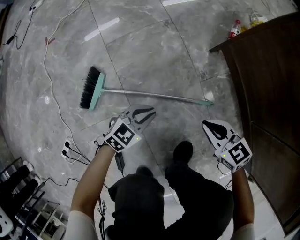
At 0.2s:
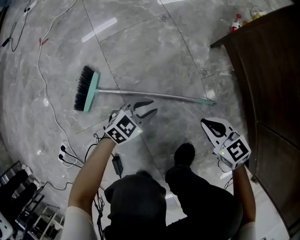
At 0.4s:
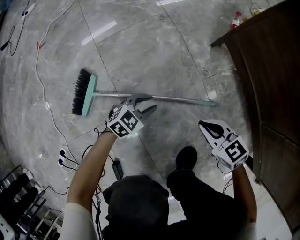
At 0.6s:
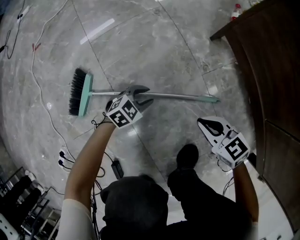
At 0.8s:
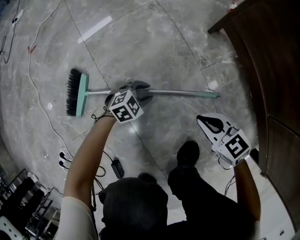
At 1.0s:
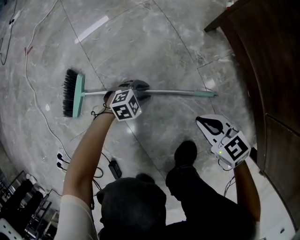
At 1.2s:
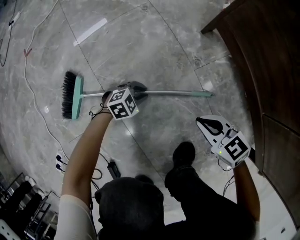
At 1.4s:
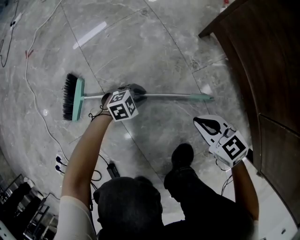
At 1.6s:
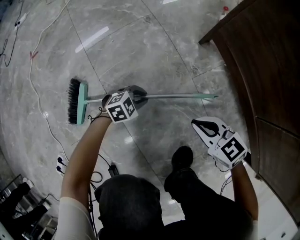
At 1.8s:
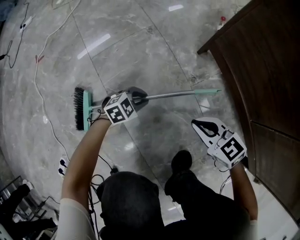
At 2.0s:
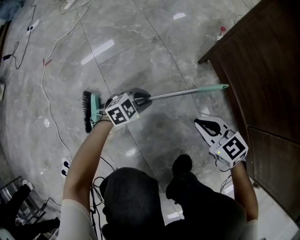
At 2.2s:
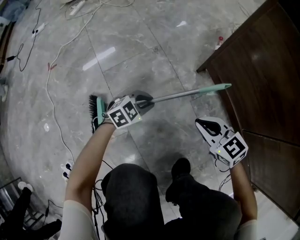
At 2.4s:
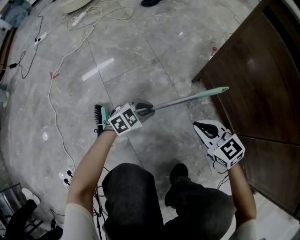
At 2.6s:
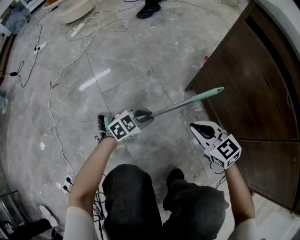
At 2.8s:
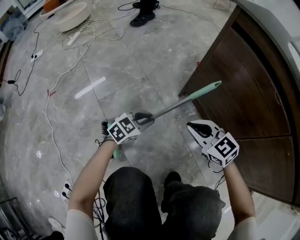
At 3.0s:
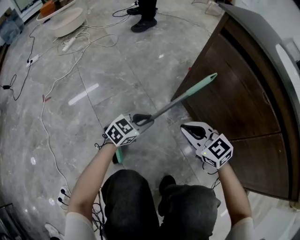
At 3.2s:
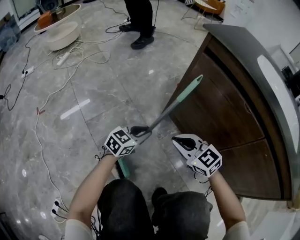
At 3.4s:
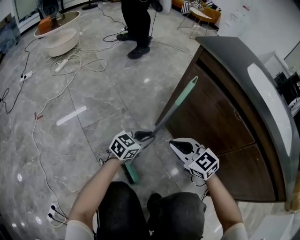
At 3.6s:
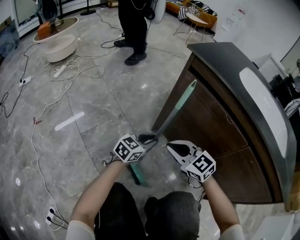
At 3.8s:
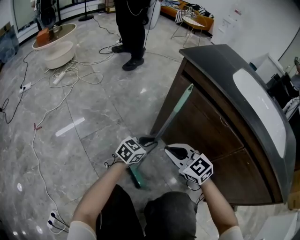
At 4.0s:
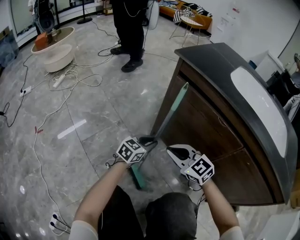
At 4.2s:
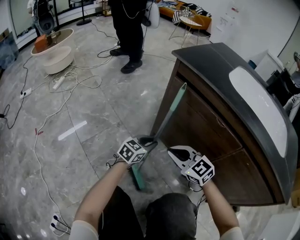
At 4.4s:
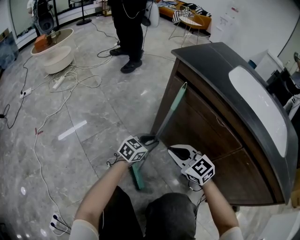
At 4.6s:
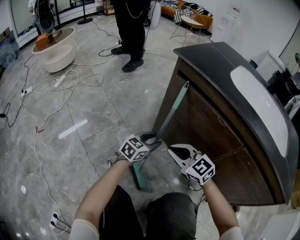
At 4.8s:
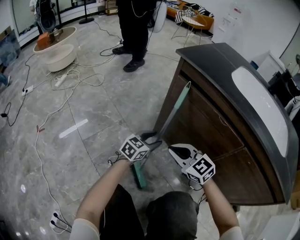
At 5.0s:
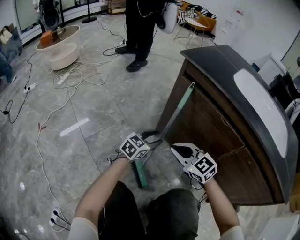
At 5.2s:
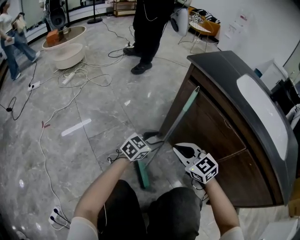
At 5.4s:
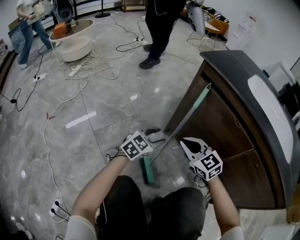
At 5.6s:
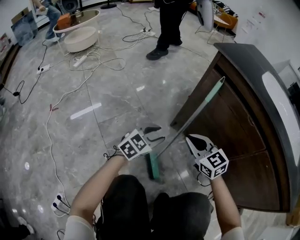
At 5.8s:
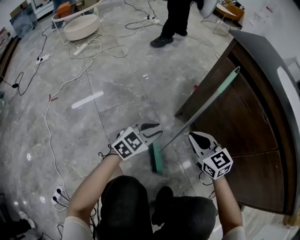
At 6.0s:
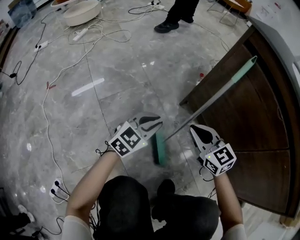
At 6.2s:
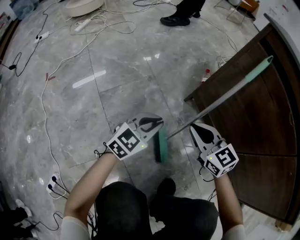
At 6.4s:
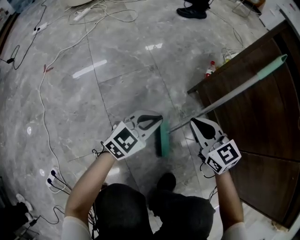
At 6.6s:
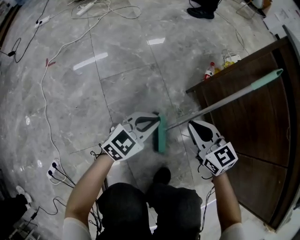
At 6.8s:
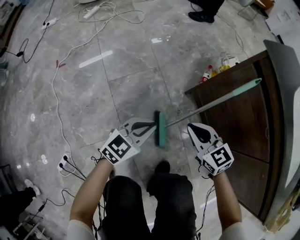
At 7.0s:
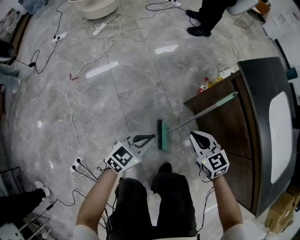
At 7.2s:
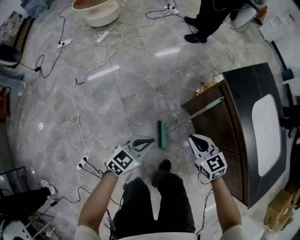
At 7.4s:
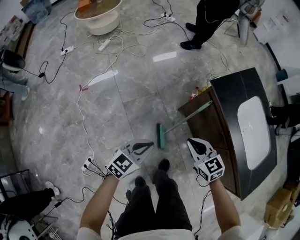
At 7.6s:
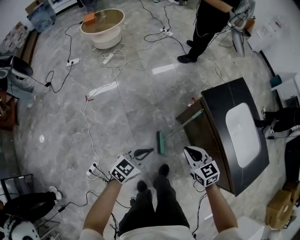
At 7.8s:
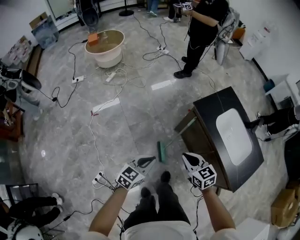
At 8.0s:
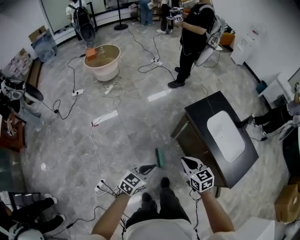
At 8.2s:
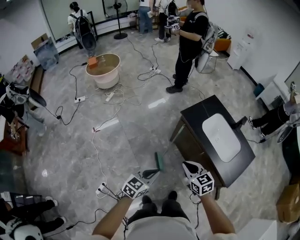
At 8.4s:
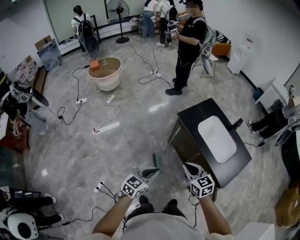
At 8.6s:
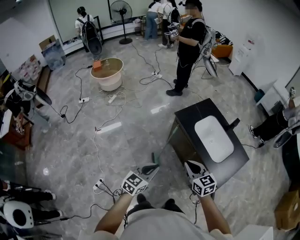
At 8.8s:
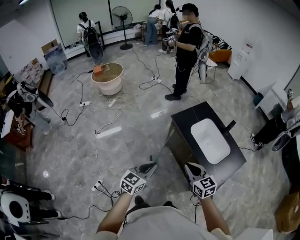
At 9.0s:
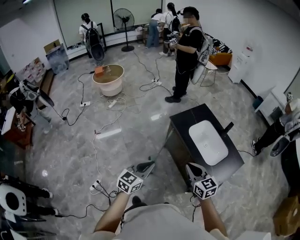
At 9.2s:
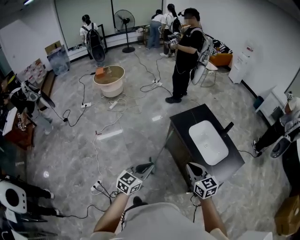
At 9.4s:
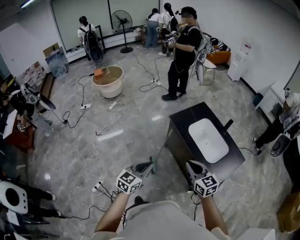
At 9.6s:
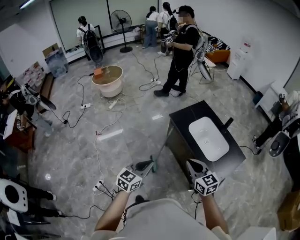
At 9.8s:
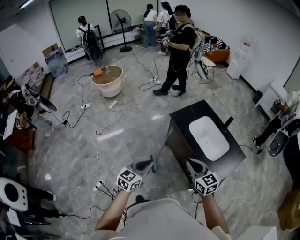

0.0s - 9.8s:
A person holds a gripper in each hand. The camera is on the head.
0.0s - 1.4s: The right gripper goes approximately 10 cm downward. The left gripper goes about 20 cm downward, and turns by roughly 40 degrees.
1.4s - 2.8s: The grippers both shift upward by about 25 cm. The left gripper swivels about 30 degrees. Meanwhile the right gripper turns by about 20 degrees.
2.8s - 4.2s: The left gripper travels to the right, upward and forward by approximately 20 cm. The right gripper is displaced upward and to the right by some 10 cm.
4.2s - 5.6s: The left gripper goes roughly 10 cm to the left, and opens up.
5.6s - 7.0s: The left gripper travels upward, to the left and backward by about 20 cm, rotates approximately 20 degrees, and closes, while the right gripper travels upward and to the left by approximately 10 cm.
7.0s - 8.4s: Both grippers move upward, some 60 cm.
8.4s - 9.8s: The left gripper travels upward and to the right by roughly 10 cm; the right gripper moves to the right and upward, some 15 cm.

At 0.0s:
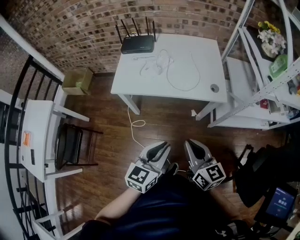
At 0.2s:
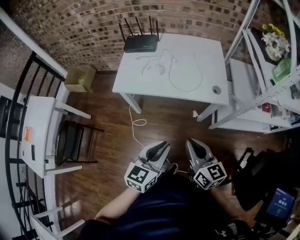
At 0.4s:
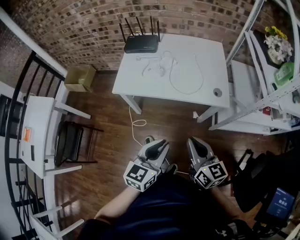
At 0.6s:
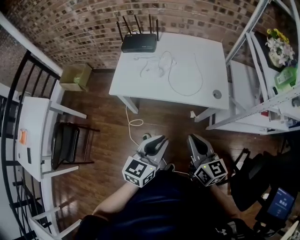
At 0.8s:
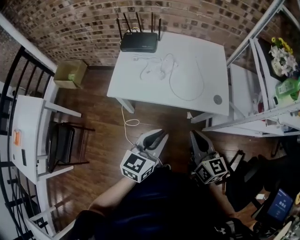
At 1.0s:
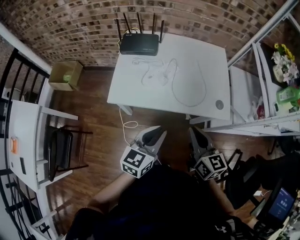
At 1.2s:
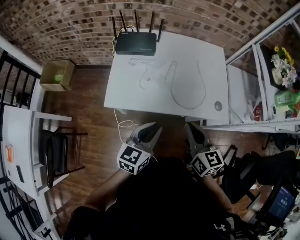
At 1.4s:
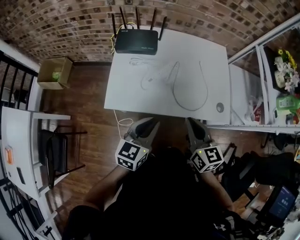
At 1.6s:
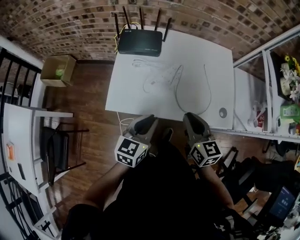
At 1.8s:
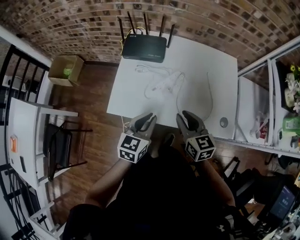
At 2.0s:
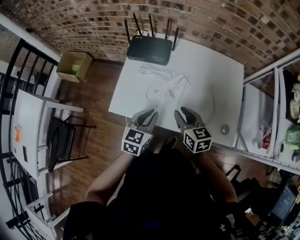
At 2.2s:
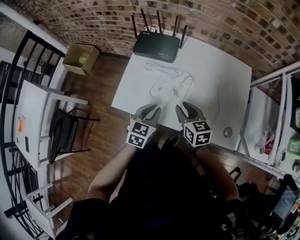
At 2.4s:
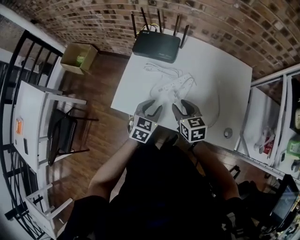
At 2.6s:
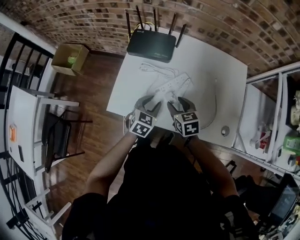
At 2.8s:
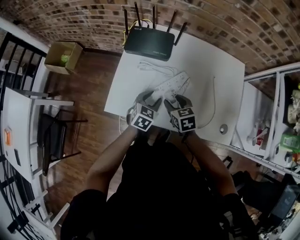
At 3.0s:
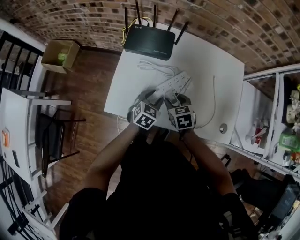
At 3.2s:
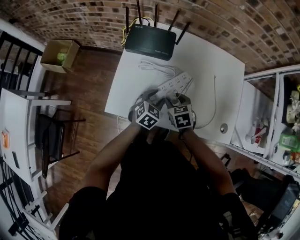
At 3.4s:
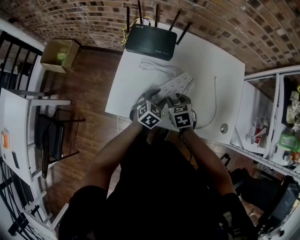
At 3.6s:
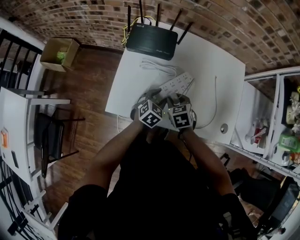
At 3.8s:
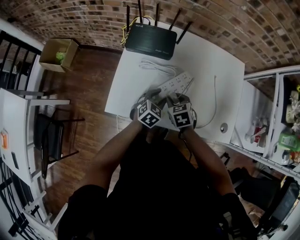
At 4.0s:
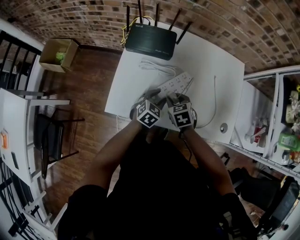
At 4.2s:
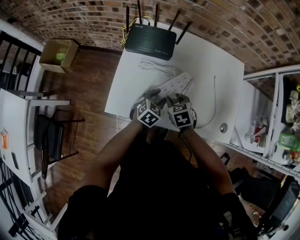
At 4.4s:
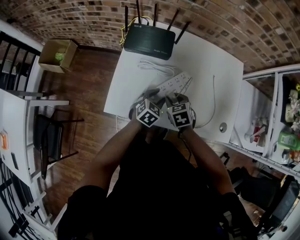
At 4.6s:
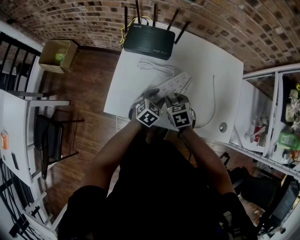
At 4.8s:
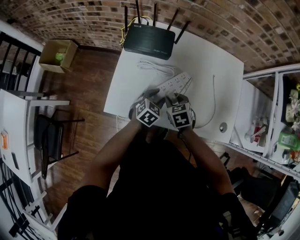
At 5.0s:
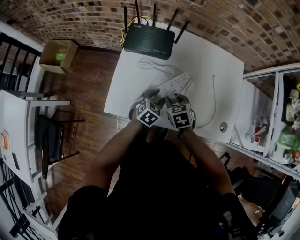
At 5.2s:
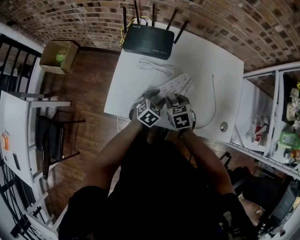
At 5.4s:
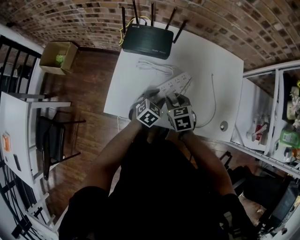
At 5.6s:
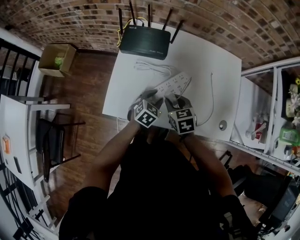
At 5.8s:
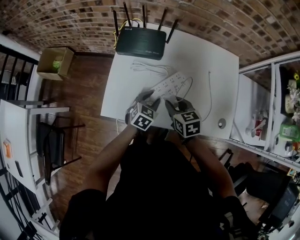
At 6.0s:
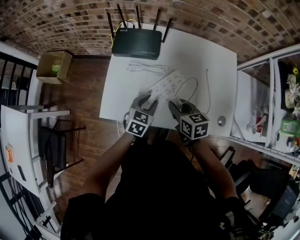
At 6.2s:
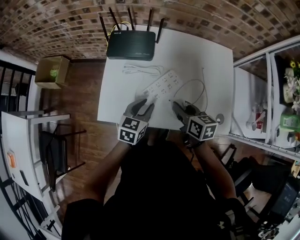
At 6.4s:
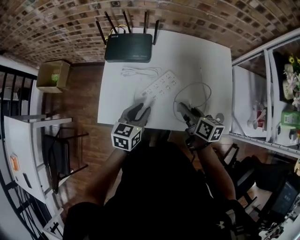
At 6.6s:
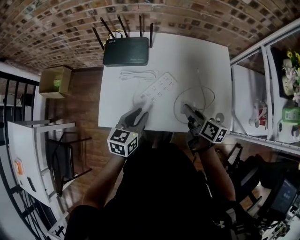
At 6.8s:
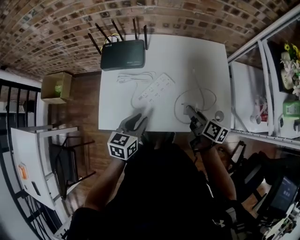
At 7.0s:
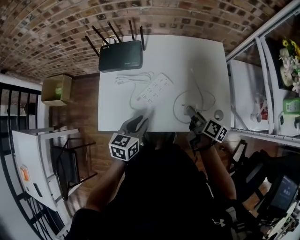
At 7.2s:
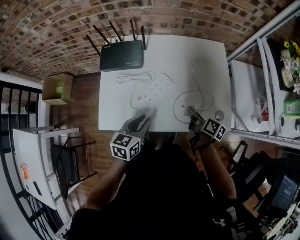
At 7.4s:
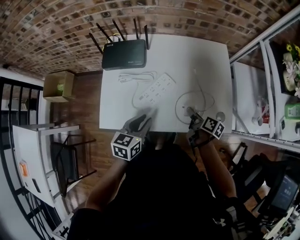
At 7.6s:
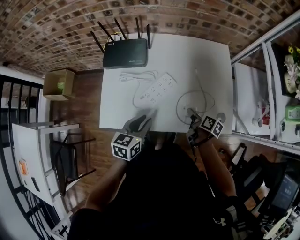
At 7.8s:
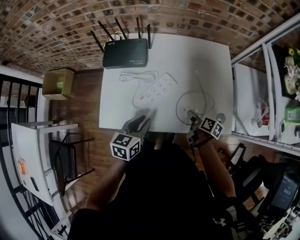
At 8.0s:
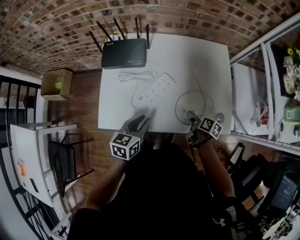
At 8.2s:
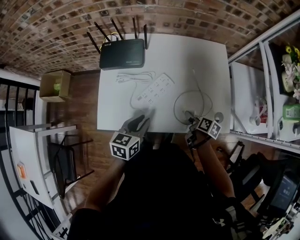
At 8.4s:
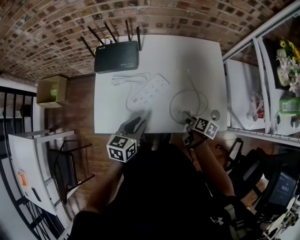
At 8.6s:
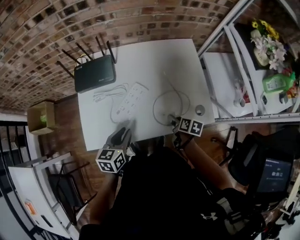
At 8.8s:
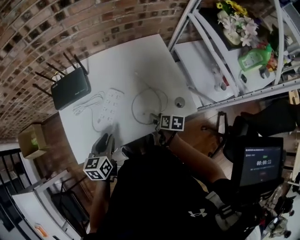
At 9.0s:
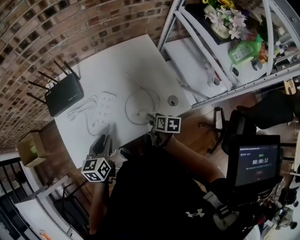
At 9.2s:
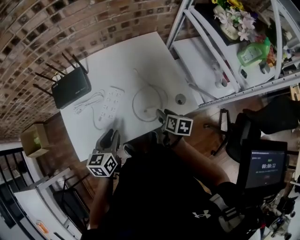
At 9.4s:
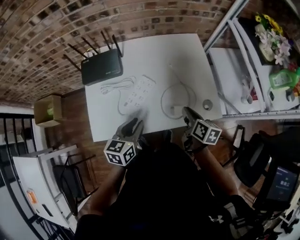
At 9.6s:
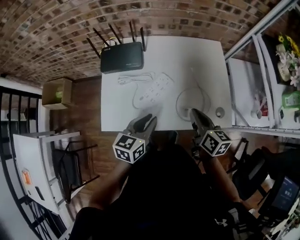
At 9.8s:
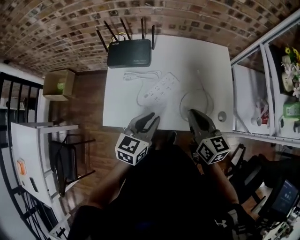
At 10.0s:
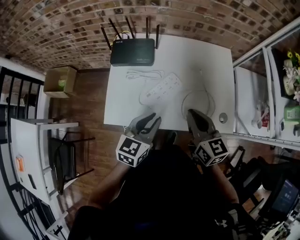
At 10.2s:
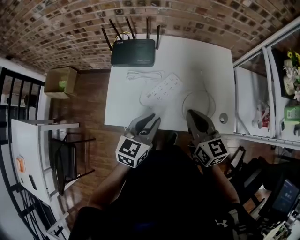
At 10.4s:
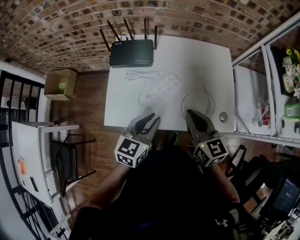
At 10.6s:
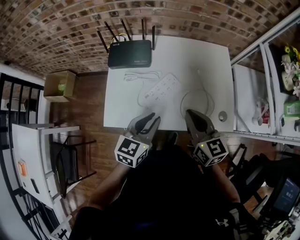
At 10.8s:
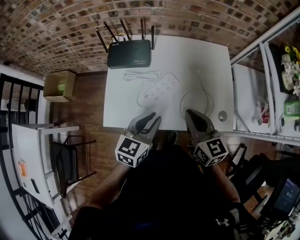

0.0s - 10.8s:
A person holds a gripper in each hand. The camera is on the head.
0.0s - 1.6s: The right gripper heads forward, covering about 30 cm; the left gripper goes approximately 30 cm forward and to the left.
1.6s - 3.0s: Both grippers move downward and forward, some 25 cm. The left gripper turns by some 30 degrees, and opens its fingers. Meanwhile the right gripper tilts its fingers roughly 30 degrees downward, and opens up.
3.0s - 4.6s: The grippers stay close to where they were, moving slightly.
4.6s - 6.2s: The right gripper goes about 10 cm upward and to the right, and changes its angle by roughly 40 degrees. The left gripper moves upward, about 10 cm, and rotates some 20 degrees.
6.2s - 7.8s: The right gripper heads to the right and downward, covering about 20 cm, and turns by some 40 degrees. The left gripper changes place by approximately 5 cm.
7.8s - 9.2s: The right gripper goes roughly 10 cm to the right and upward.
9.2s - 10.8s: The left gripper goes roughly 5 cm upward. The right gripper goes about 25 cm upward and to the left, turns by some 50 degrees, and closes its fingers.

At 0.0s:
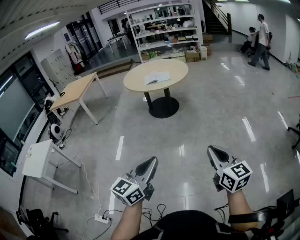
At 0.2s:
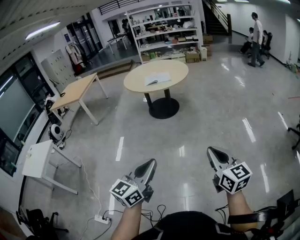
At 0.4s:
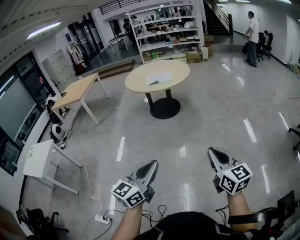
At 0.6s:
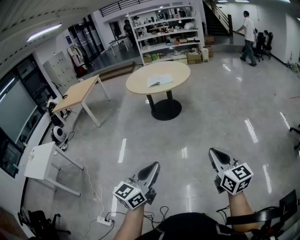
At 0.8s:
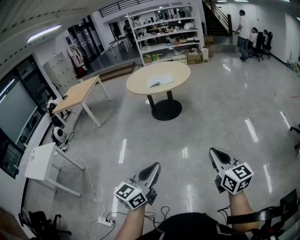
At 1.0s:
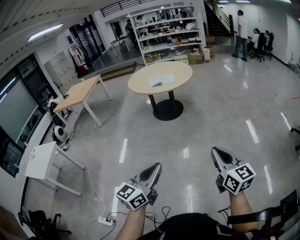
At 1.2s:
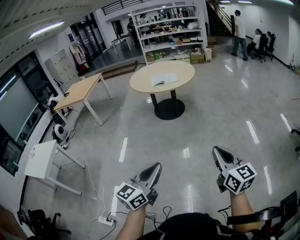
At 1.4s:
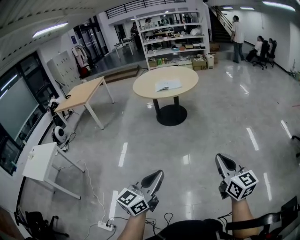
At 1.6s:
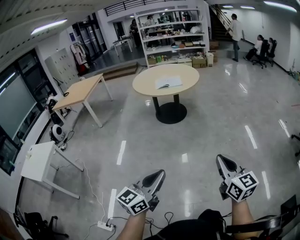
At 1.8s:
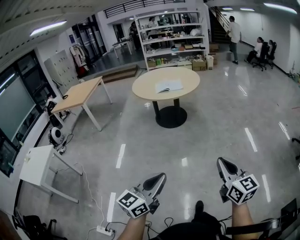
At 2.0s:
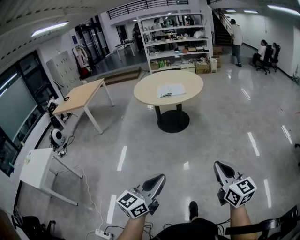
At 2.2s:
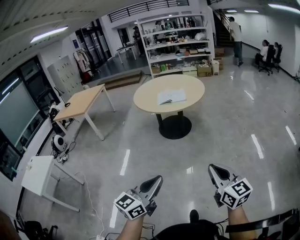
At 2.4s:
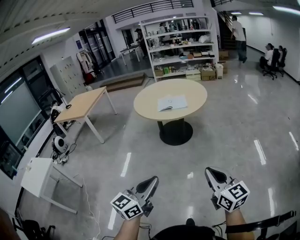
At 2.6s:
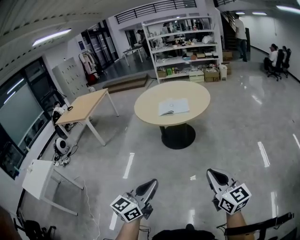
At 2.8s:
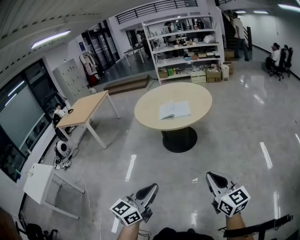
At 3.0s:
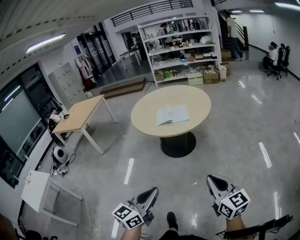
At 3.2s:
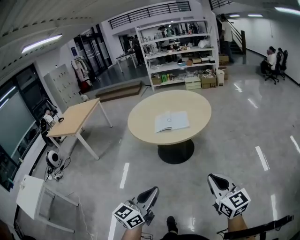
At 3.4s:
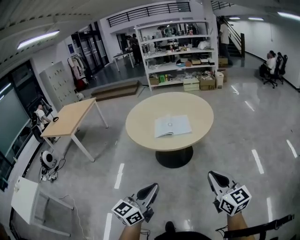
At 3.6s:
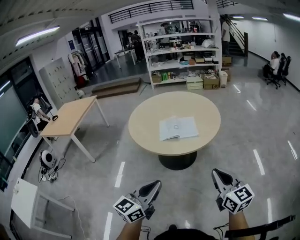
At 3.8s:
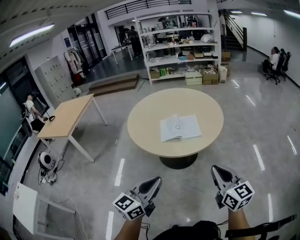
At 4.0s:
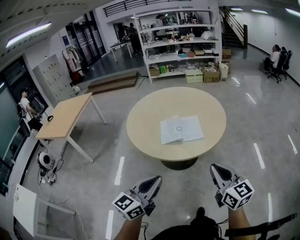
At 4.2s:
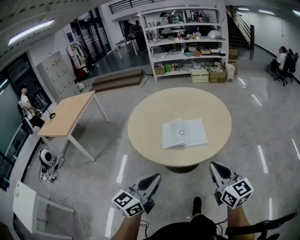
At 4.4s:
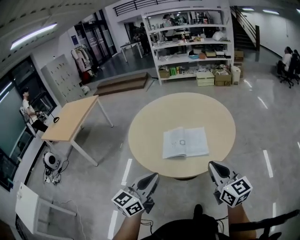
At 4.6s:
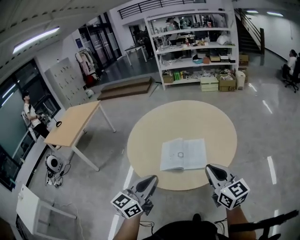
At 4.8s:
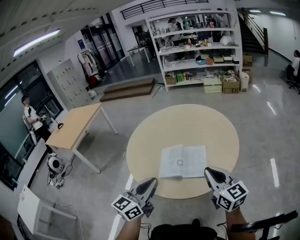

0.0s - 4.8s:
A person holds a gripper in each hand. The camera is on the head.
0.0s - 1.6s: The grippers both shift to the left by about 10 cm.
1.6s - 3.2s: Both grippers are carried forward, about 50 cm.
3.2s - 4.8s: The pair of grippers is taken forward, roughly 60 cm.
